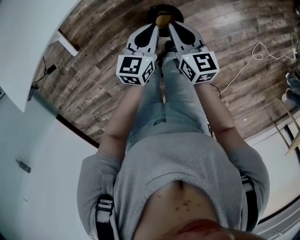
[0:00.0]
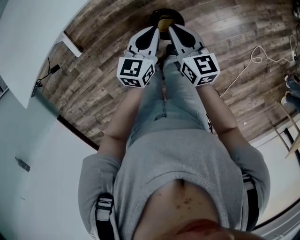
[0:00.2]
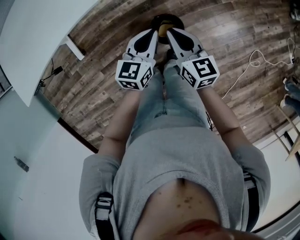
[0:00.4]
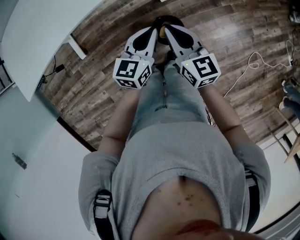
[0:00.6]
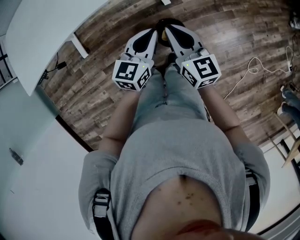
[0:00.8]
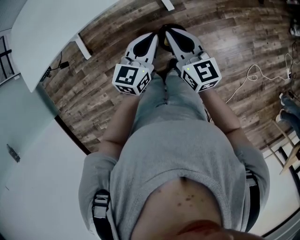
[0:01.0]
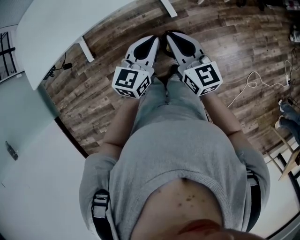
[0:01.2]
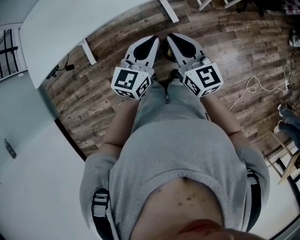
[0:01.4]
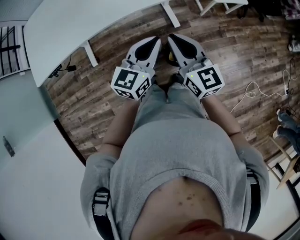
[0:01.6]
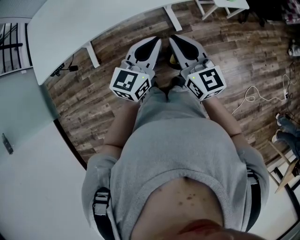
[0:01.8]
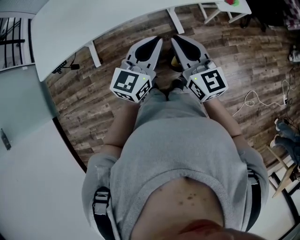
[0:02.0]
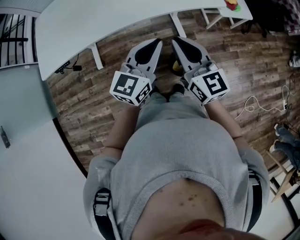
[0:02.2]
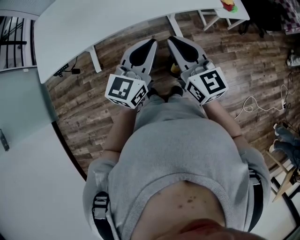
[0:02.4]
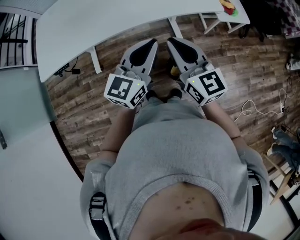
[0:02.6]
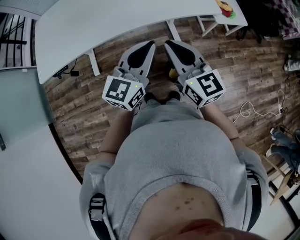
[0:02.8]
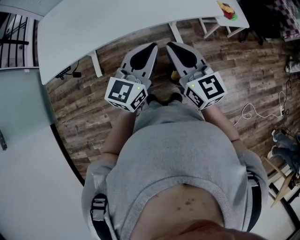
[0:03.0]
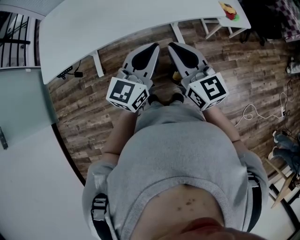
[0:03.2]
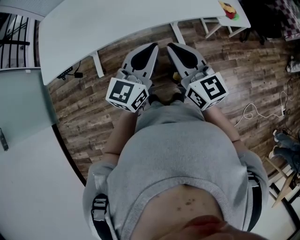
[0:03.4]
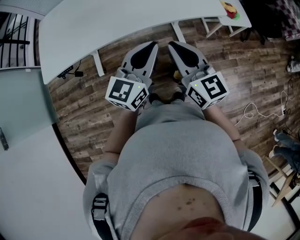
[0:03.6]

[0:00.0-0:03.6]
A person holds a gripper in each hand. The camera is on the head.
0:00.0 to 0:01.8: The right gripper heads upward and to the left, covering some 25 cm, and rotates about 30 degrees. The left gripper travels upward by about 25 cm.
0:01.8 to 0:03.6: The left gripper moves upward and to the left, about 10 cm. Meanwhile the right gripper heads upward, covering roughly 5 cm.

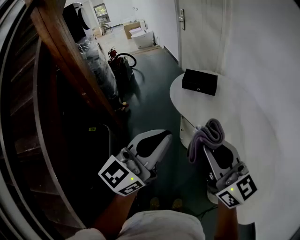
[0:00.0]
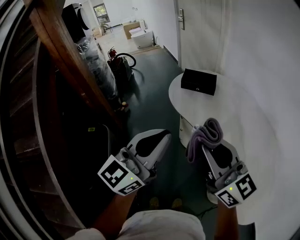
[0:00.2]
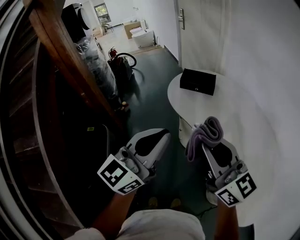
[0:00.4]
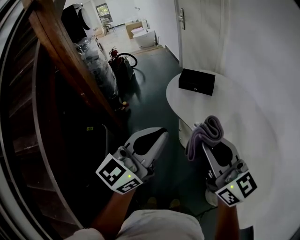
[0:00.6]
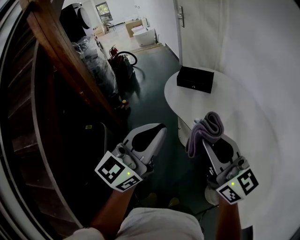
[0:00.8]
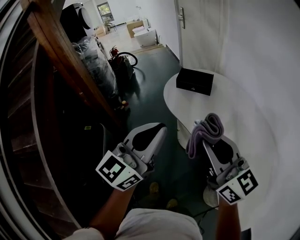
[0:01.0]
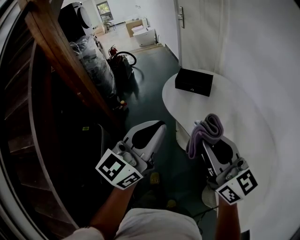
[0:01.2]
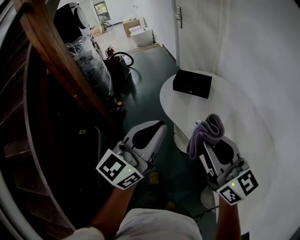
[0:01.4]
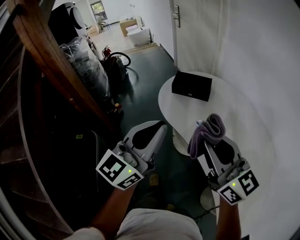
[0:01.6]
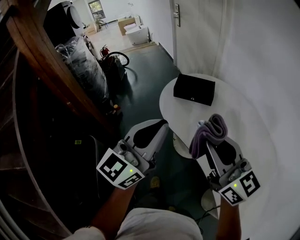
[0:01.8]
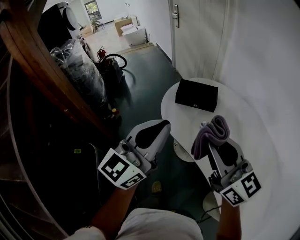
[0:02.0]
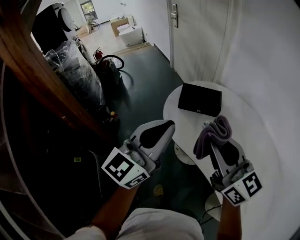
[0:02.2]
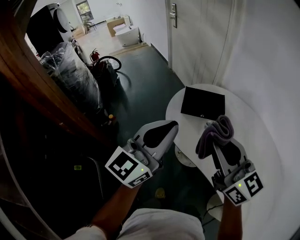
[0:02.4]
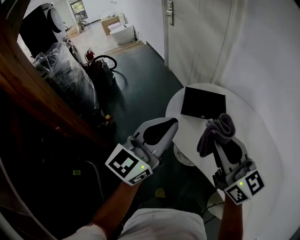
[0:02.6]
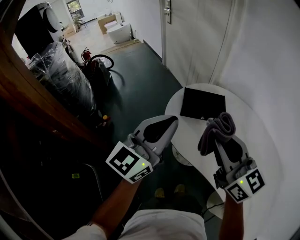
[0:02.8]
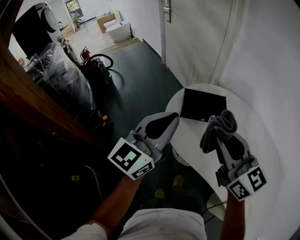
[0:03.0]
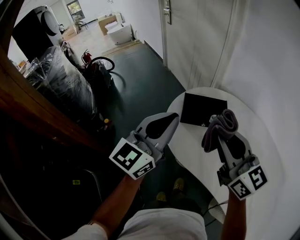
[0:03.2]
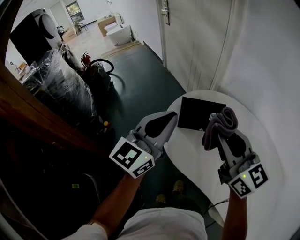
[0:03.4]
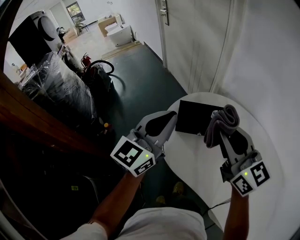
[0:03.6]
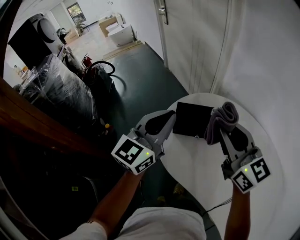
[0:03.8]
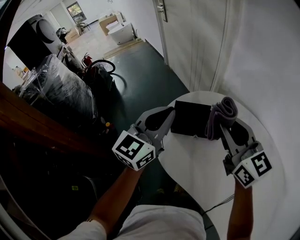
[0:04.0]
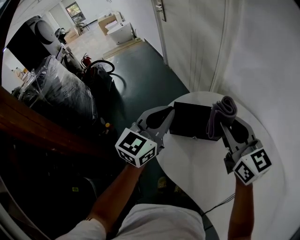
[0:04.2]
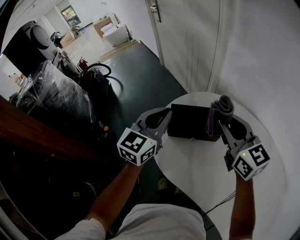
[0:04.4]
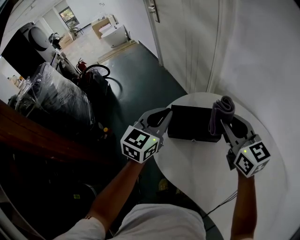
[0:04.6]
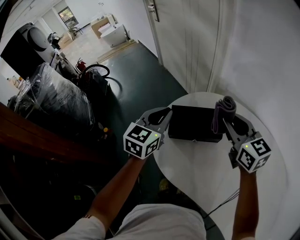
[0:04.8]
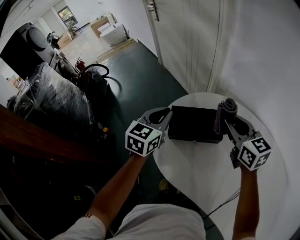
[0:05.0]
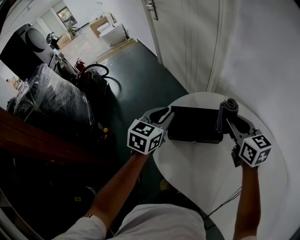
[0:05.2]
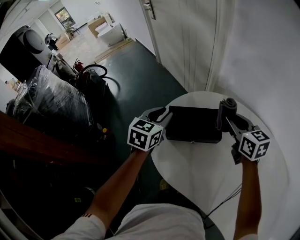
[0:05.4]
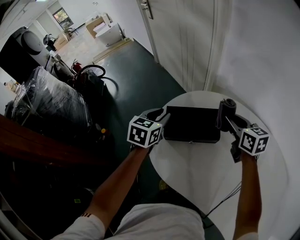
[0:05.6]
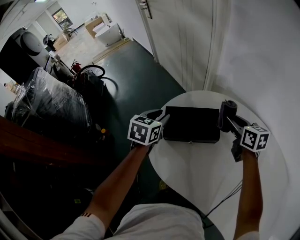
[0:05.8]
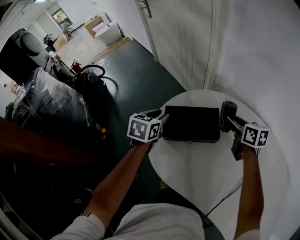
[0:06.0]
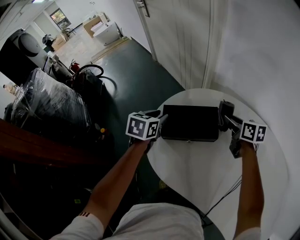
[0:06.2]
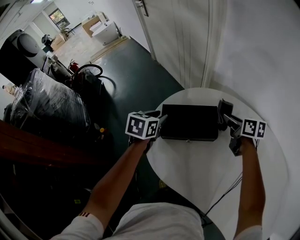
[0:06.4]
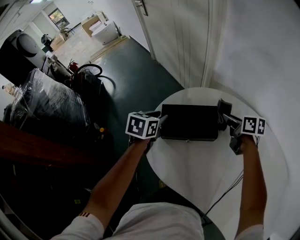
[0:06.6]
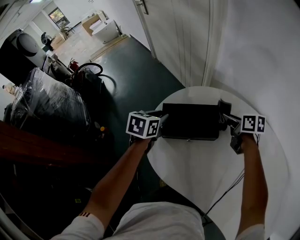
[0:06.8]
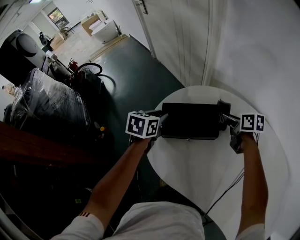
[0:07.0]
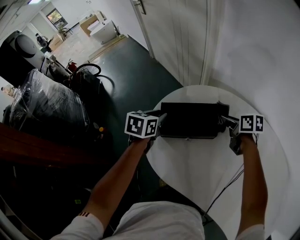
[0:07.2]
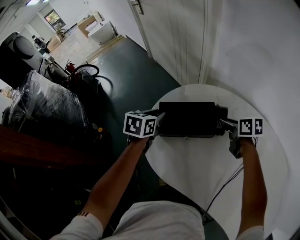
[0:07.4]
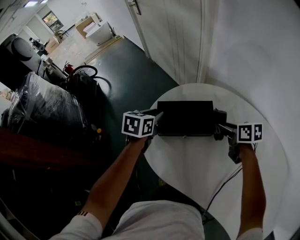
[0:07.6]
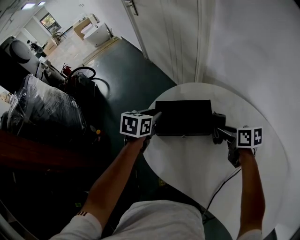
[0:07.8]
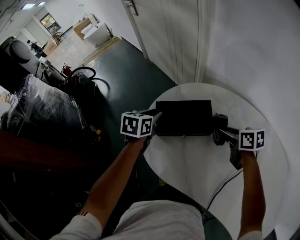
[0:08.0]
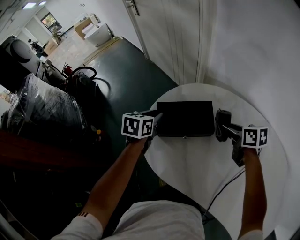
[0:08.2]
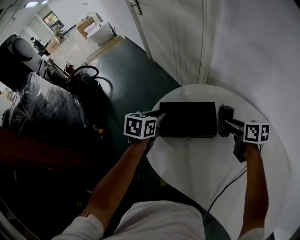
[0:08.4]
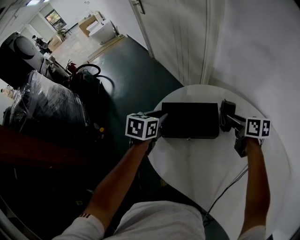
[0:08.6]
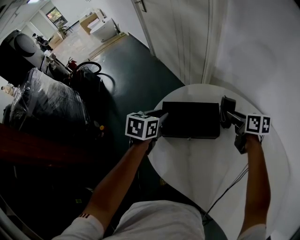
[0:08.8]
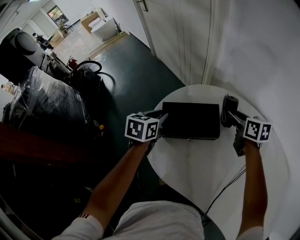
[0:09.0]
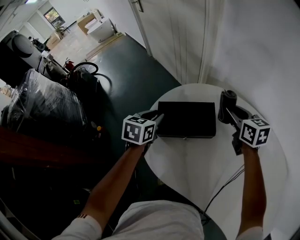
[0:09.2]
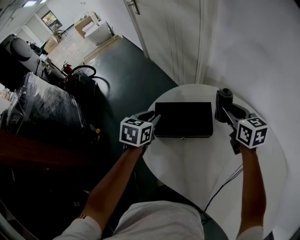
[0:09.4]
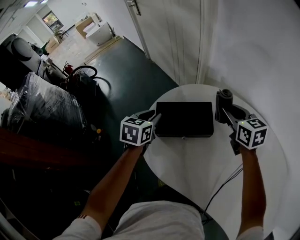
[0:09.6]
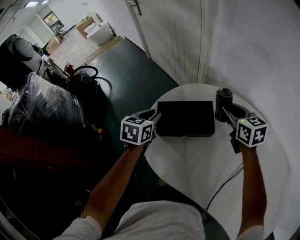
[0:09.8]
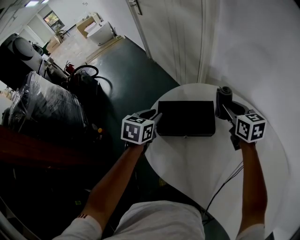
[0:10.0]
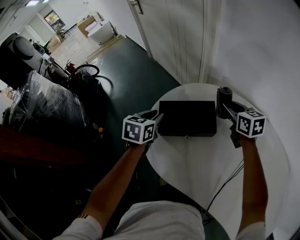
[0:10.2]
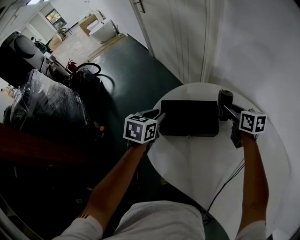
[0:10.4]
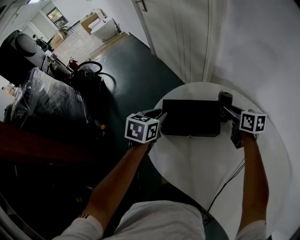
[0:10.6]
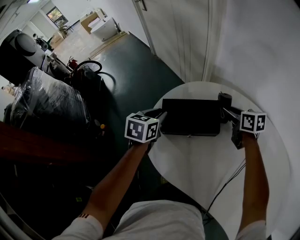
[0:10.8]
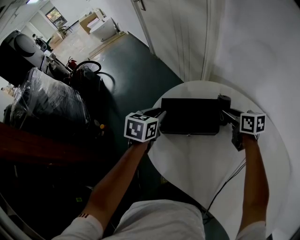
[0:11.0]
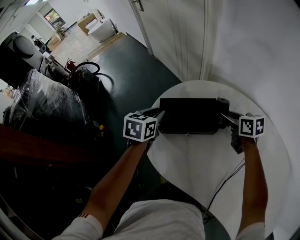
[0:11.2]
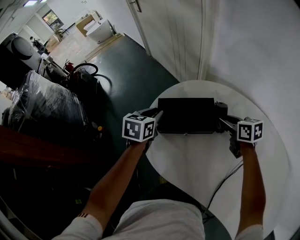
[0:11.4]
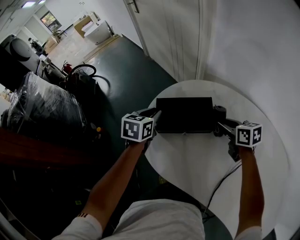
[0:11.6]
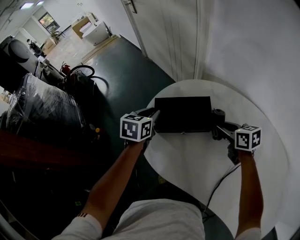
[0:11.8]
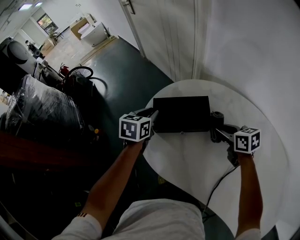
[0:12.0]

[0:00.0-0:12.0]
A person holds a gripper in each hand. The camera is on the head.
0:00.0 to 0:01.6: The right gripper shifts about 15 cm forward and to the right; the left gripper goes roughly 10 cm forward.
0:01.6 to 0:03.0: The right gripper heads forward and to the left, covering roughly 25 cm, while the left gripper is displaced forward by about 30 cm.
0:03.0 to 0:04.4: The right gripper goes some 20 cm forward and to the right. The left gripper shifts about 20 cm forward and downward.
0:04.4 to 0:06.0: The right gripper is displaced downward, to the right and forward by roughly 20 cm, and changes its angle by approximately 40 degrees. The left gripper heads downward and forward, covering some 15 cm, angles its fingers downward, by about 30 degrees, and opens up.
0:06.0 to 0:07.6: The right gripper heads backward, covering some 5 cm.
0:07.6 to 0:09.0: The right gripper goes about 5 cm forward.
0:09.0 to 0:10.4: The grippers make only small movements.
0:10.4 to 0:12.0: The right gripper travels backward by approximately 10 cm.

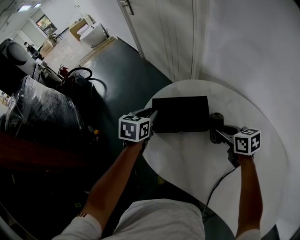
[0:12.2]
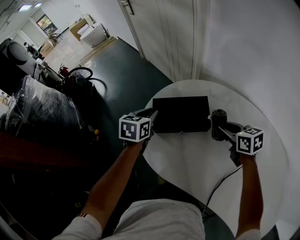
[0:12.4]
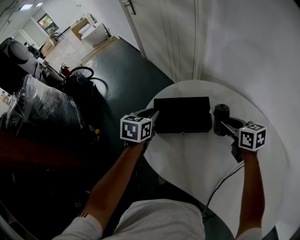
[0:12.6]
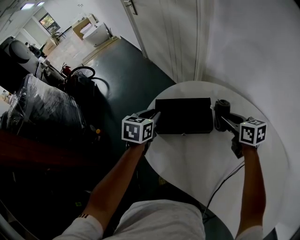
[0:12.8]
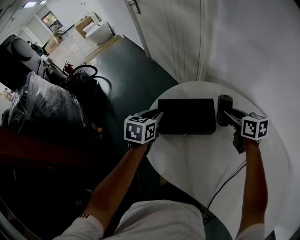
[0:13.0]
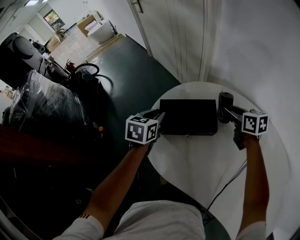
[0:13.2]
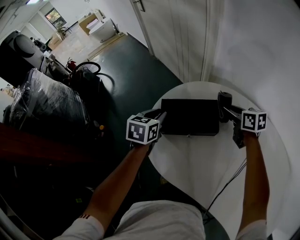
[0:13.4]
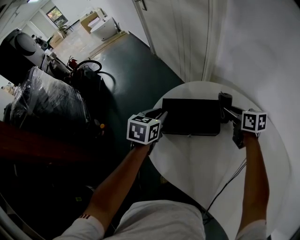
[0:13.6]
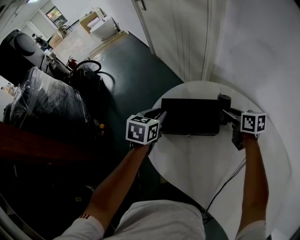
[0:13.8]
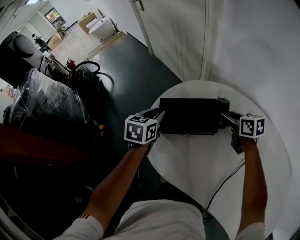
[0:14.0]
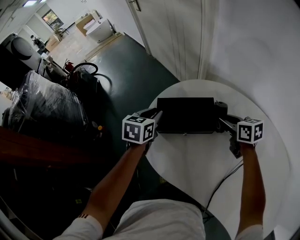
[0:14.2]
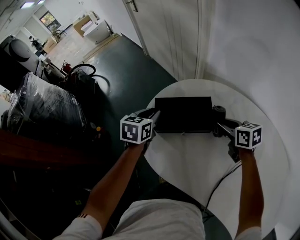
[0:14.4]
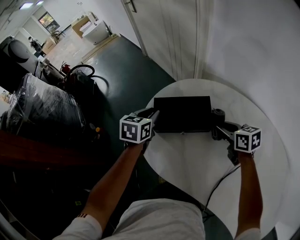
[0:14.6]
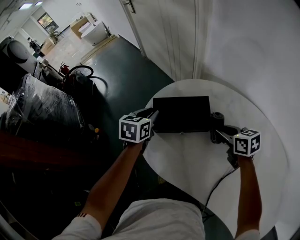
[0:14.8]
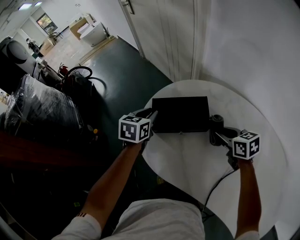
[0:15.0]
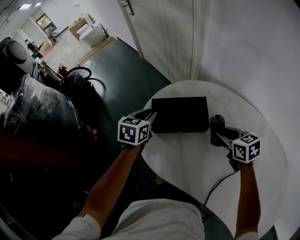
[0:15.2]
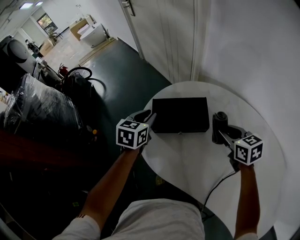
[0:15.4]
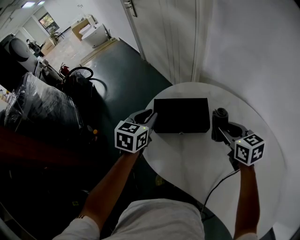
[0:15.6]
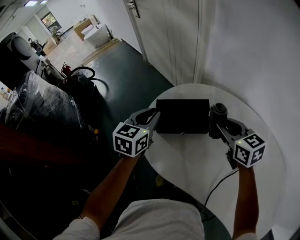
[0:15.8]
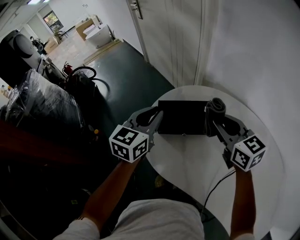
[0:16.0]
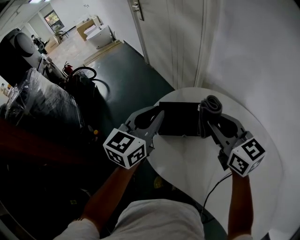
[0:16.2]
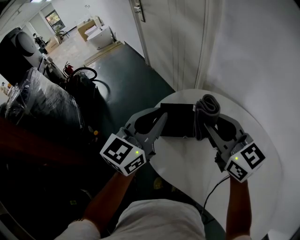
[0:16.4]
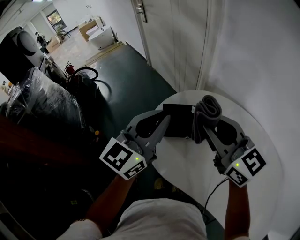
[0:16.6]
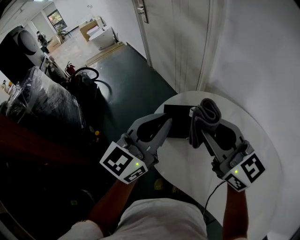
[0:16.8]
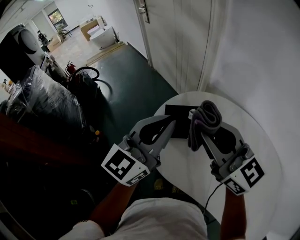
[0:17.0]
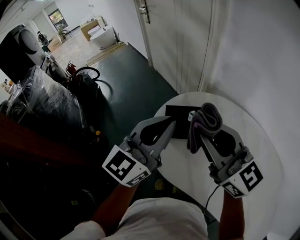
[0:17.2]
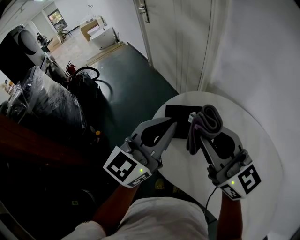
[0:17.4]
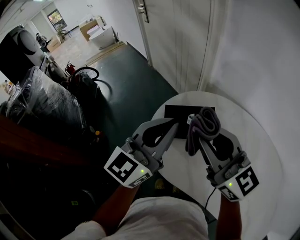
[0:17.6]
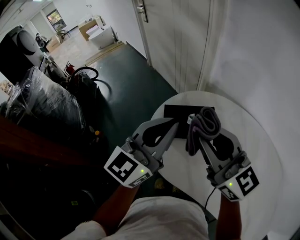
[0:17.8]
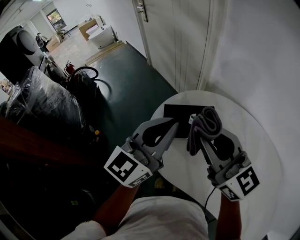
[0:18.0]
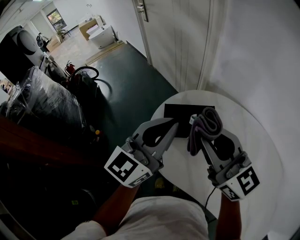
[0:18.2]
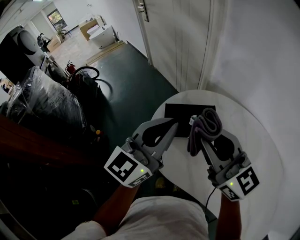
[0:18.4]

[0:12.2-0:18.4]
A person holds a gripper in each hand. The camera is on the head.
0:12.2 to 0:13.8: The right gripper is displaced forward by approximately 10 cm.
0:13.8 to 0:15.4: The right gripper heads backward, covering some 10 cm.
0:15.4 to 0:16.8: The left gripper is displaced upward and backward by some 25 cm, and tilts its fingers some 40 degrees upward; the right gripper shifts about 25 cm upward and to the left, and tilts its fingers approximately 40 degrees upward.
0:16.8 to 0:18.4: The grippers make only small movements.

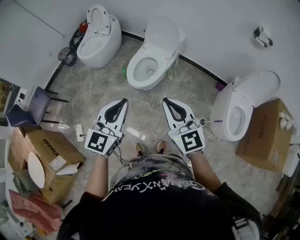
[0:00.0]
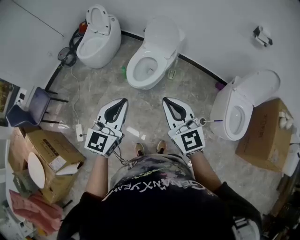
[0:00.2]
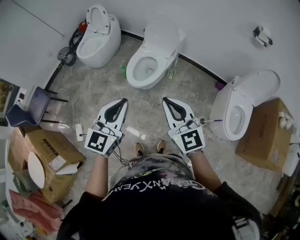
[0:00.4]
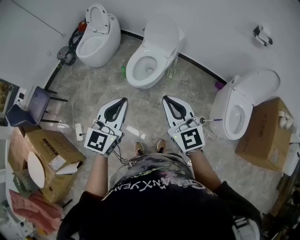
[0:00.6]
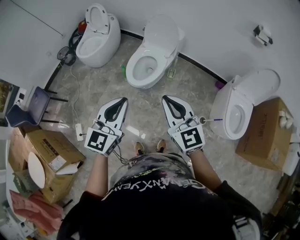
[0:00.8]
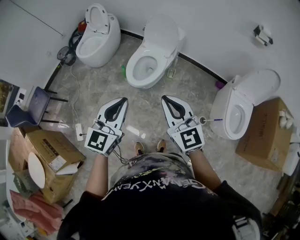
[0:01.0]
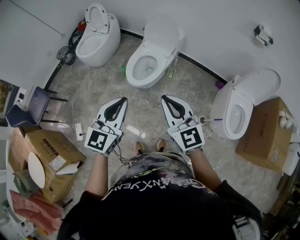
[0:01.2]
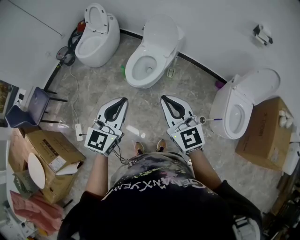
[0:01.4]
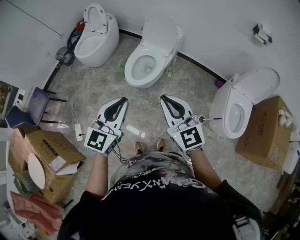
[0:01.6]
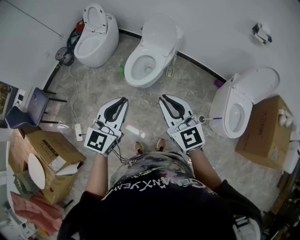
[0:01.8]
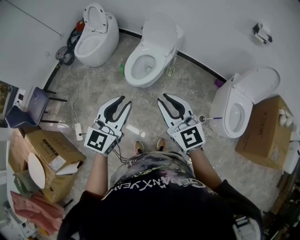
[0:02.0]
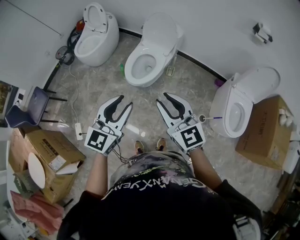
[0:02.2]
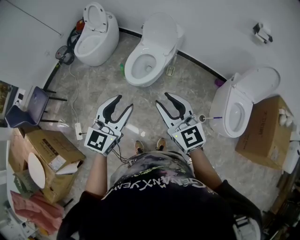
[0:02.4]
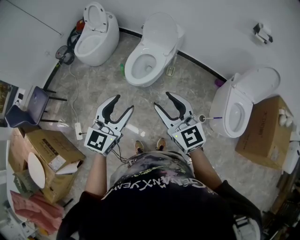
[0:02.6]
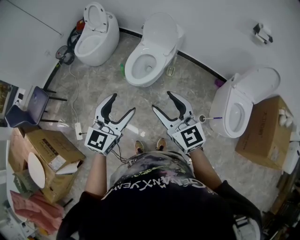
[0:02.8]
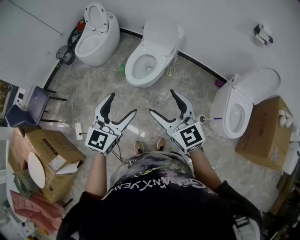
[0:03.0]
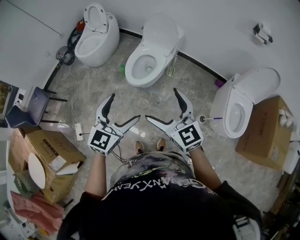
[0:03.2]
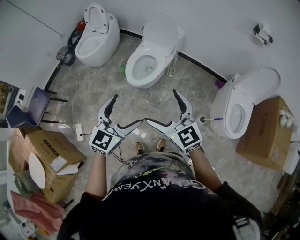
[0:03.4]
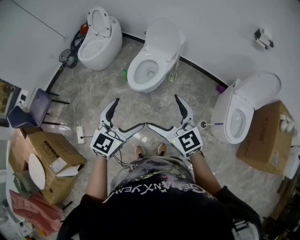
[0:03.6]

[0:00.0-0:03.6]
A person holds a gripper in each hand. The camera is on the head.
0:00.0 to 0:01.8: The grippers make only small movements.
0:01.8 to 0:03.6: The left gripper opens its fingers, while the right gripper opens.
